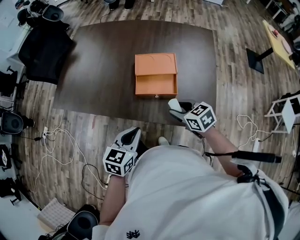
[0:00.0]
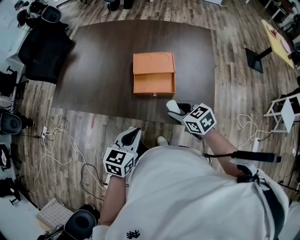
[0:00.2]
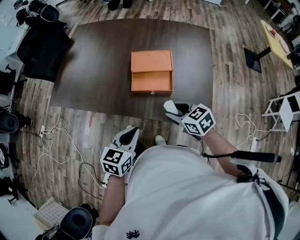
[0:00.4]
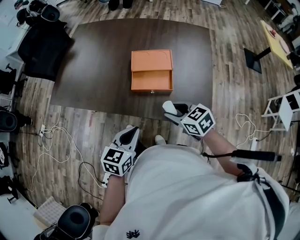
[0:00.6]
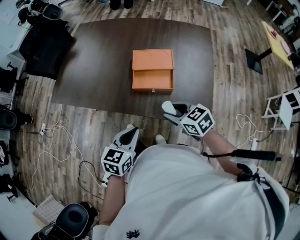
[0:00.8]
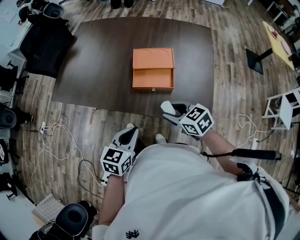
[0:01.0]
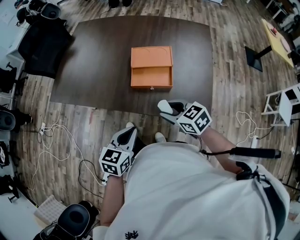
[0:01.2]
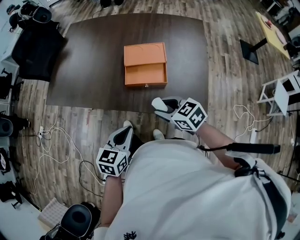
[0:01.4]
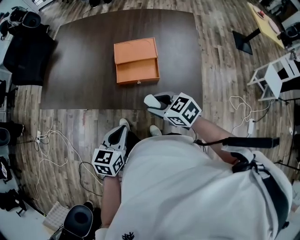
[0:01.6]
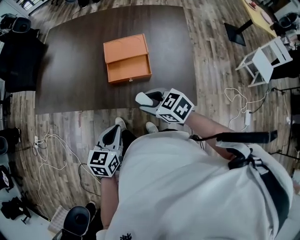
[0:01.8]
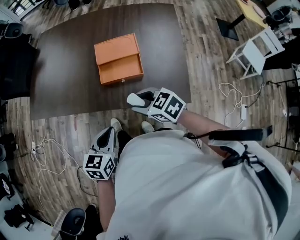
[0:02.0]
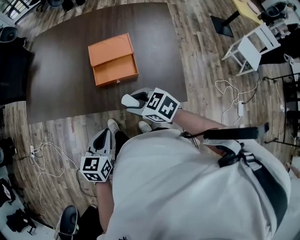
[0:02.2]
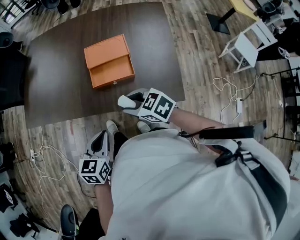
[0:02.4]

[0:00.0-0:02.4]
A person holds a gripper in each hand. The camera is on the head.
0:00.0 to 0:01.2: The right gripper shifts by roughly 5 cm.
0:01.2 to 0:02.4: There are only small adjustments of the grippers.

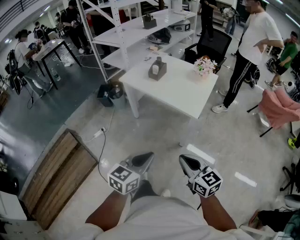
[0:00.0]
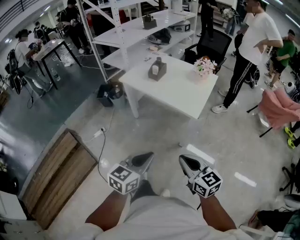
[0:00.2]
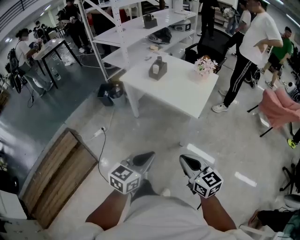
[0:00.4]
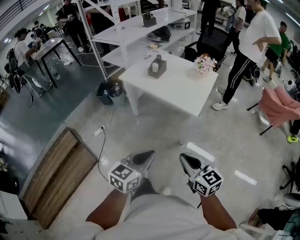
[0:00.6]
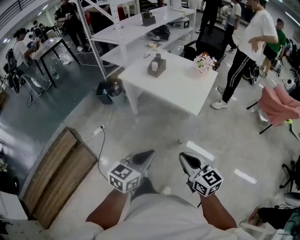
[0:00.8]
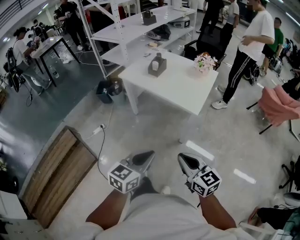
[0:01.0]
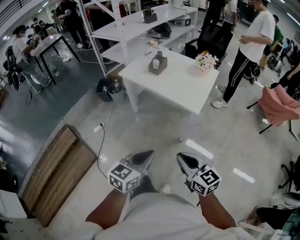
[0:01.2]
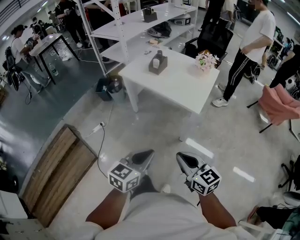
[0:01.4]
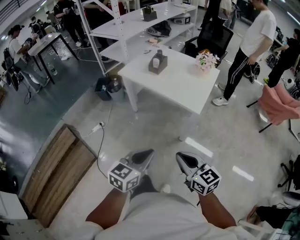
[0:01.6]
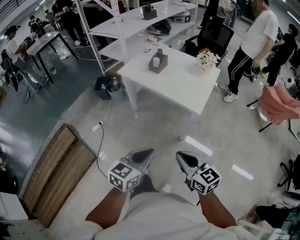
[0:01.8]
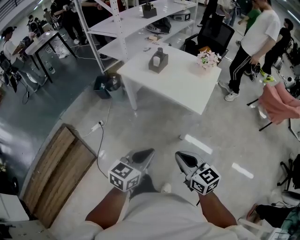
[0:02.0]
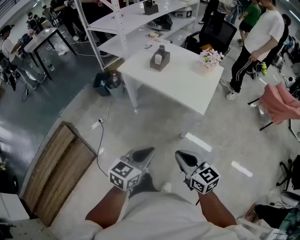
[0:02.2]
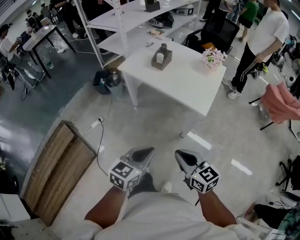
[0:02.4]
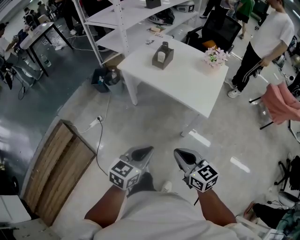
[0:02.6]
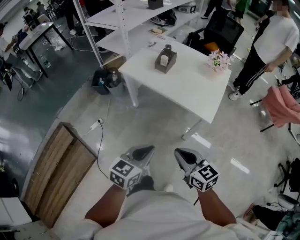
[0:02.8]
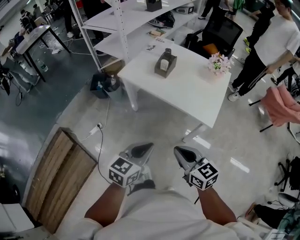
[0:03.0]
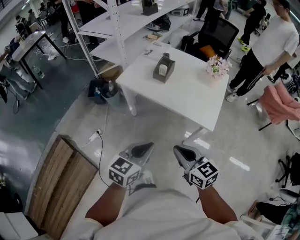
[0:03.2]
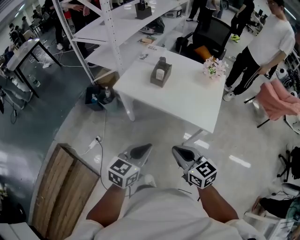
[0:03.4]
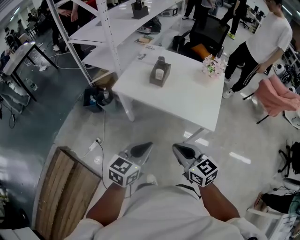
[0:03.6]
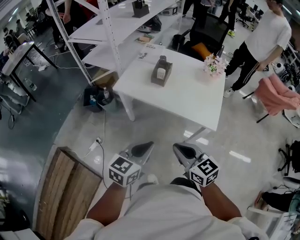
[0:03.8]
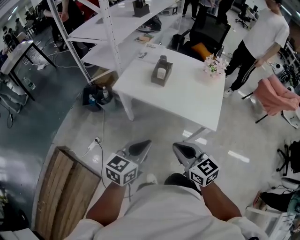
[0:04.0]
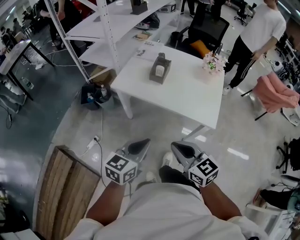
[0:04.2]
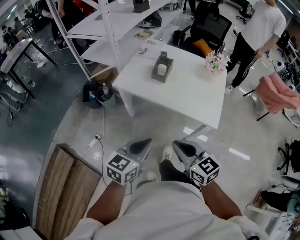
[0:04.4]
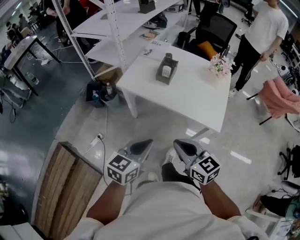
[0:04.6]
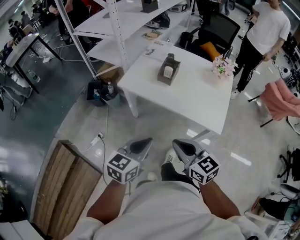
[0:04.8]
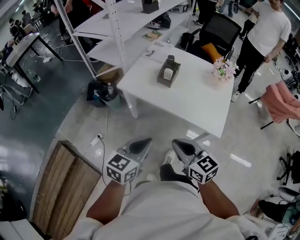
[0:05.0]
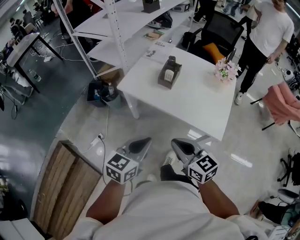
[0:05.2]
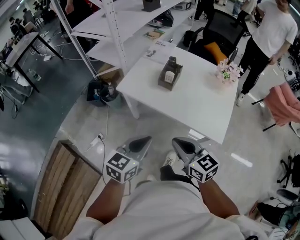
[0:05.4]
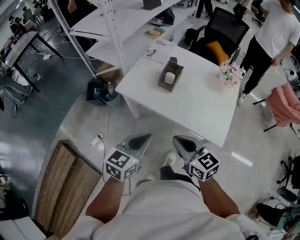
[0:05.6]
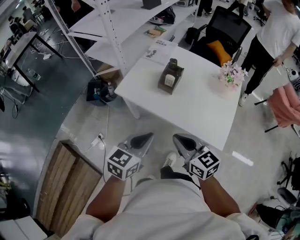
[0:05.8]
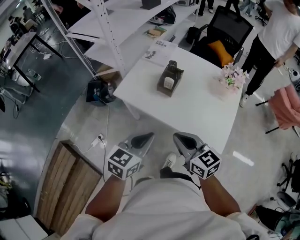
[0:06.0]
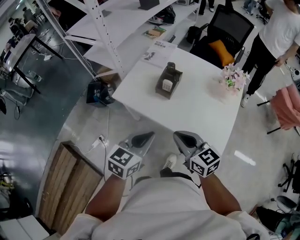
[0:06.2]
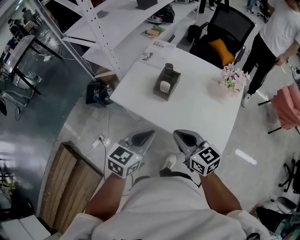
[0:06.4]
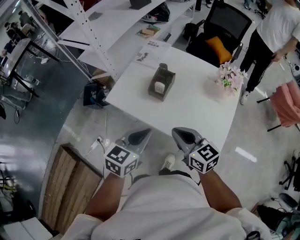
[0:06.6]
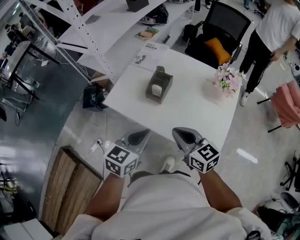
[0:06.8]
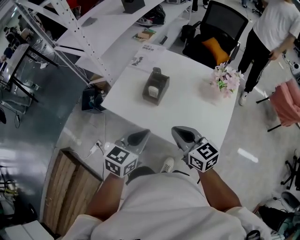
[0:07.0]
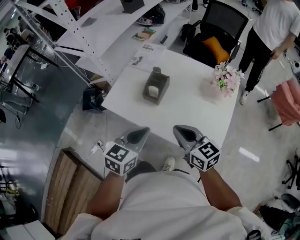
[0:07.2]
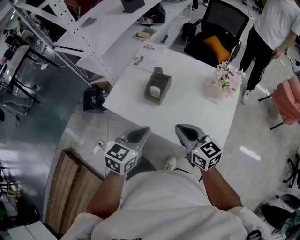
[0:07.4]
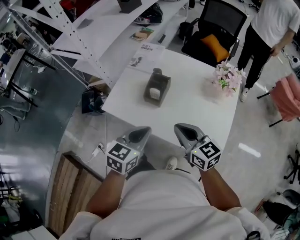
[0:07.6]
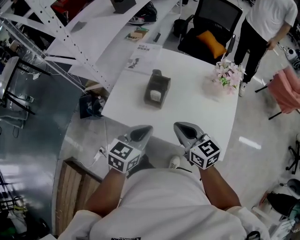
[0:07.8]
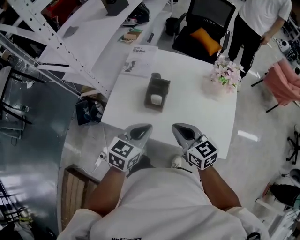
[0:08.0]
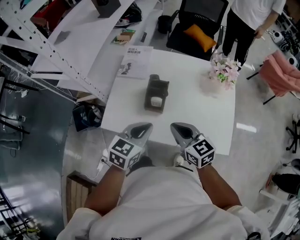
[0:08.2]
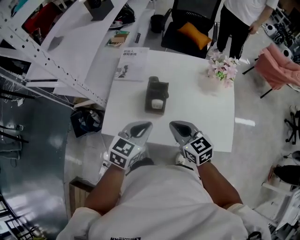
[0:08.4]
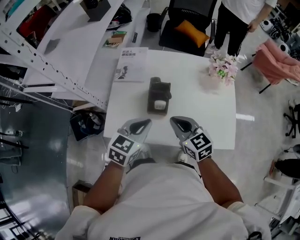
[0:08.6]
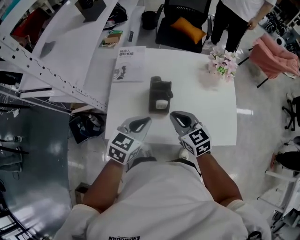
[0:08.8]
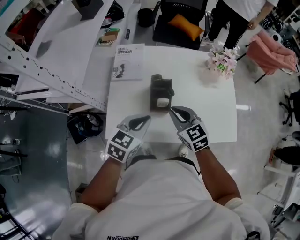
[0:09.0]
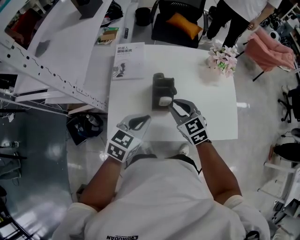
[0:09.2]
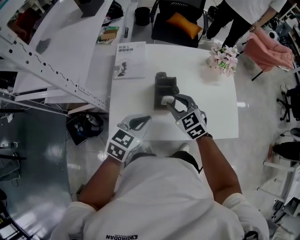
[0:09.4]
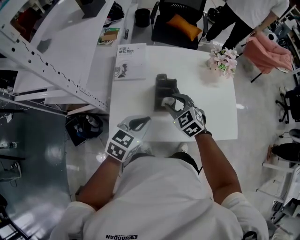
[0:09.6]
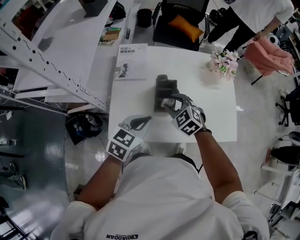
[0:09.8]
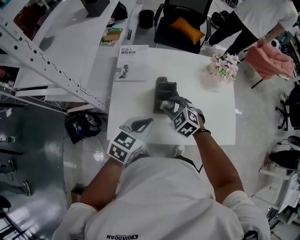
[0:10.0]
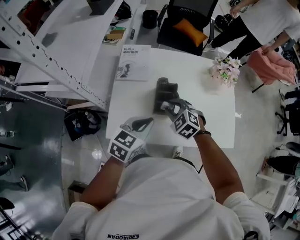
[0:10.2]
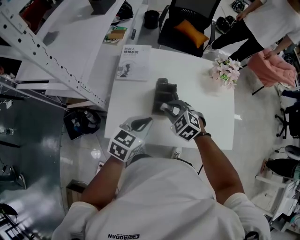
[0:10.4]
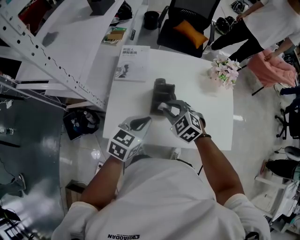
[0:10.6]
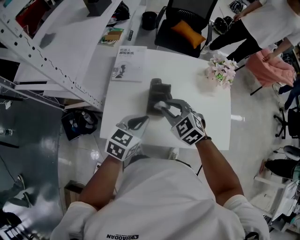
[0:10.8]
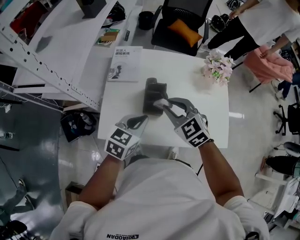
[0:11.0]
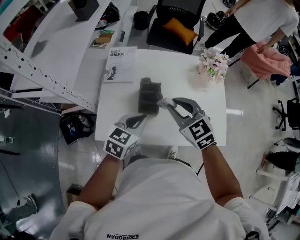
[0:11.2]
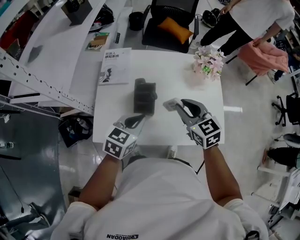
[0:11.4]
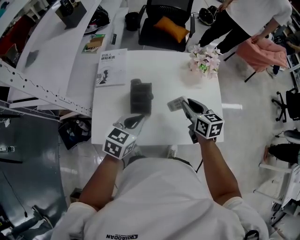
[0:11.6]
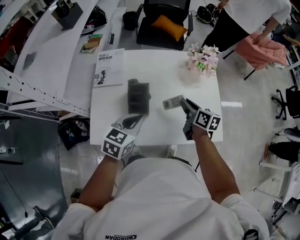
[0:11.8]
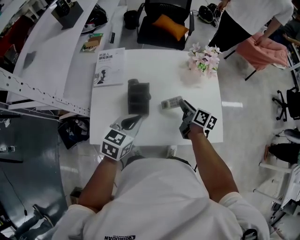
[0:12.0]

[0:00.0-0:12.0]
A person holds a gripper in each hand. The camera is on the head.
0:00.0 to 0:01.6: The grippers make only small movements.
0:01.6 to 0:03.0: Both grippers move forward and to the left, some 20 cm.
0:03.0 to 0:04.4: Both grippers move forward and to the left, approximately 10 cm.
0:04.4 to 0:06.0: The two grippers go roughly 20 cm forward.
0:06.0 to 0:07.6: The two grippers go some 15 cm forward and to the right.
0:07.6 to 0:09.0: The left gripper ends up roughly 20 cm from where it was, and swivels some 30 degrees, while the right gripper changes place by roughly 20 cm, and rotates approximately 30 degrees.
0:09.0 to 0:10.4: The right gripper ends up approximately 5 cm from where it was, and rotates approximately 40 degrees.
0:10.4 to 0:12.0: The right gripper heads to the right, covering about 20 cm, and rolls clockwise, seen from behind, by some 90 degrees, while the left gripper travels to the right by some 10 cm.

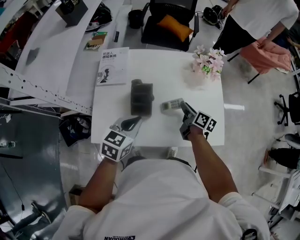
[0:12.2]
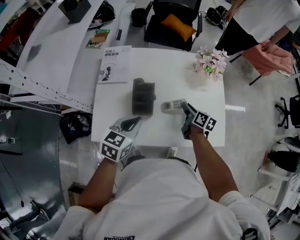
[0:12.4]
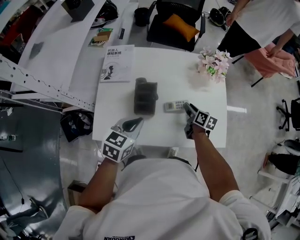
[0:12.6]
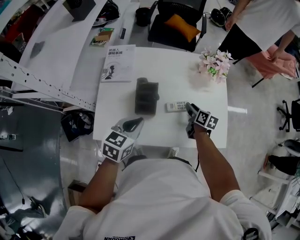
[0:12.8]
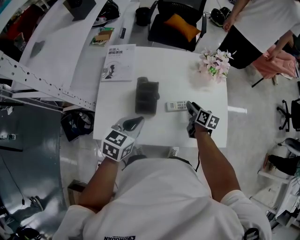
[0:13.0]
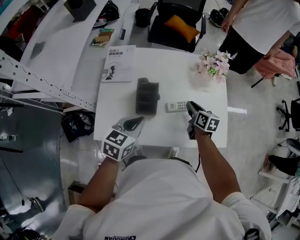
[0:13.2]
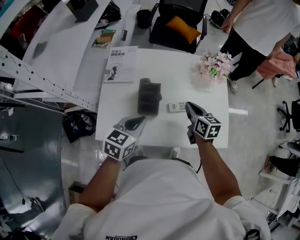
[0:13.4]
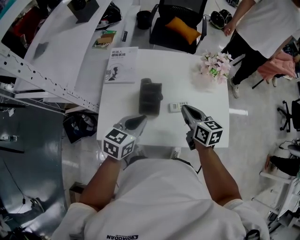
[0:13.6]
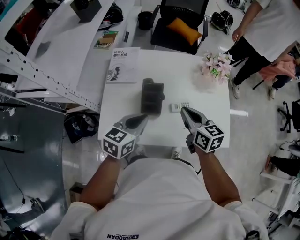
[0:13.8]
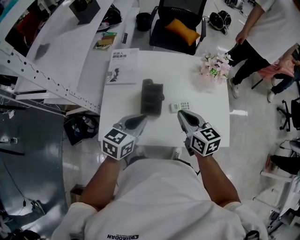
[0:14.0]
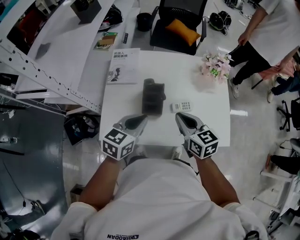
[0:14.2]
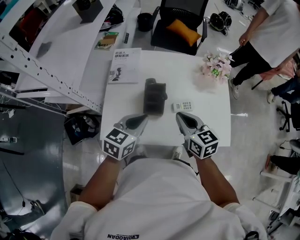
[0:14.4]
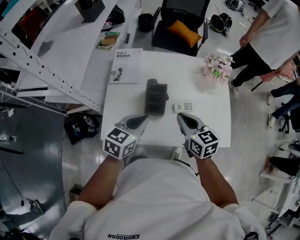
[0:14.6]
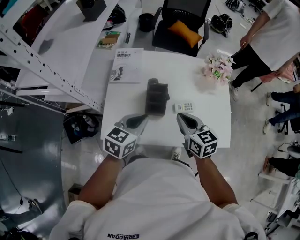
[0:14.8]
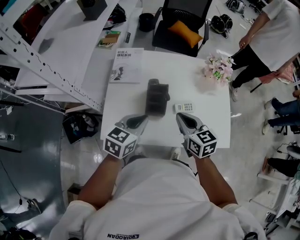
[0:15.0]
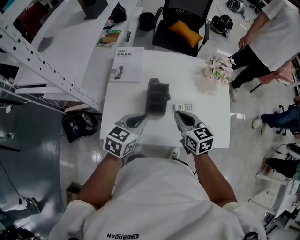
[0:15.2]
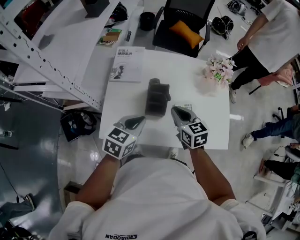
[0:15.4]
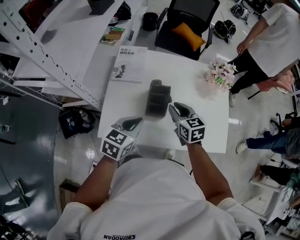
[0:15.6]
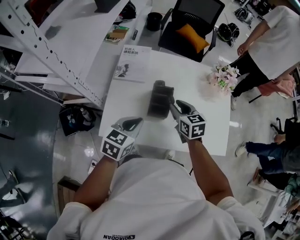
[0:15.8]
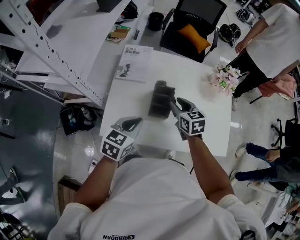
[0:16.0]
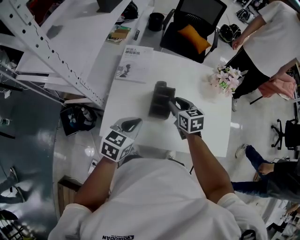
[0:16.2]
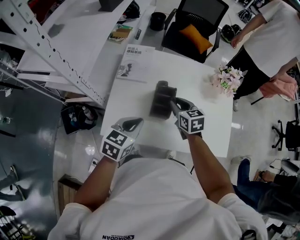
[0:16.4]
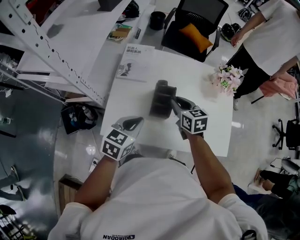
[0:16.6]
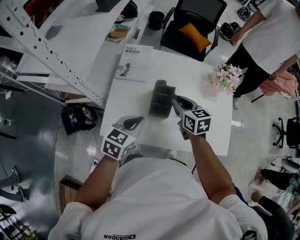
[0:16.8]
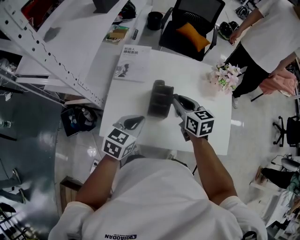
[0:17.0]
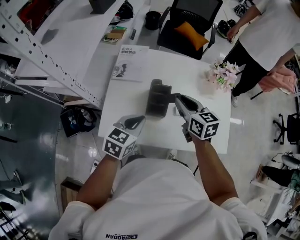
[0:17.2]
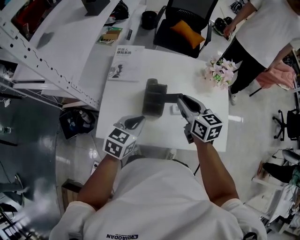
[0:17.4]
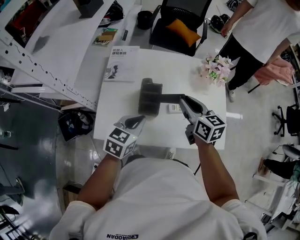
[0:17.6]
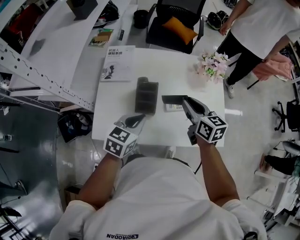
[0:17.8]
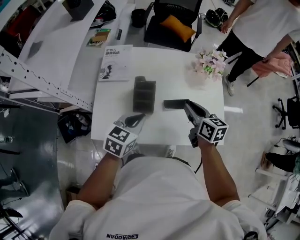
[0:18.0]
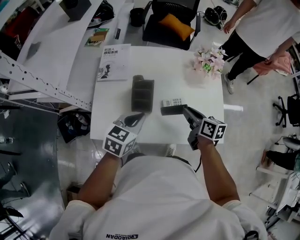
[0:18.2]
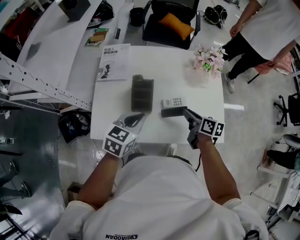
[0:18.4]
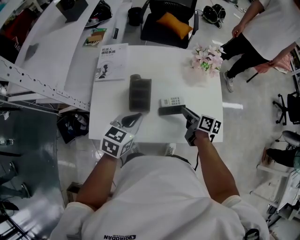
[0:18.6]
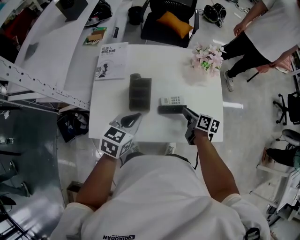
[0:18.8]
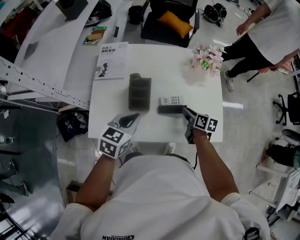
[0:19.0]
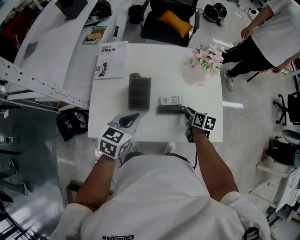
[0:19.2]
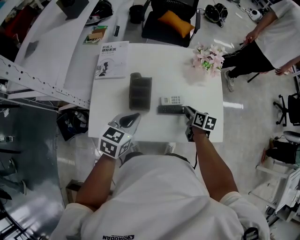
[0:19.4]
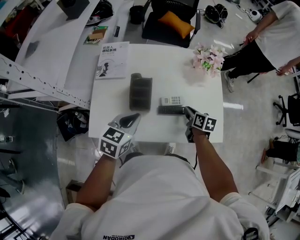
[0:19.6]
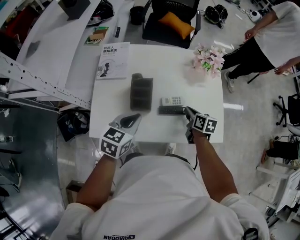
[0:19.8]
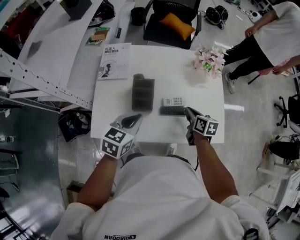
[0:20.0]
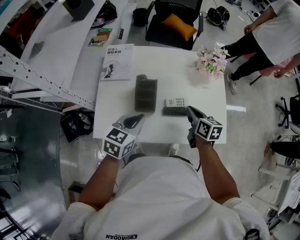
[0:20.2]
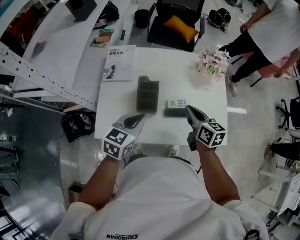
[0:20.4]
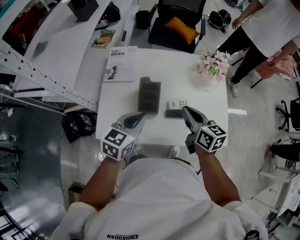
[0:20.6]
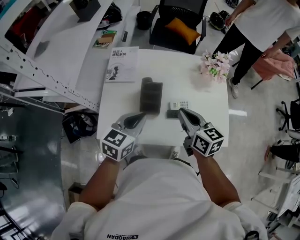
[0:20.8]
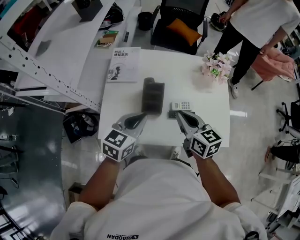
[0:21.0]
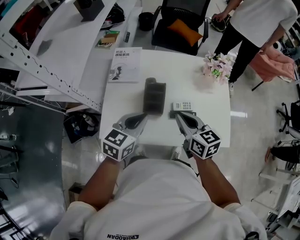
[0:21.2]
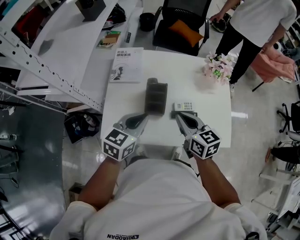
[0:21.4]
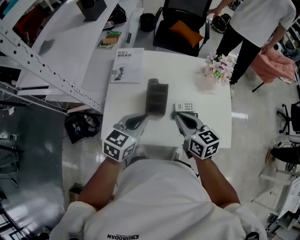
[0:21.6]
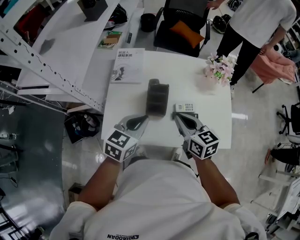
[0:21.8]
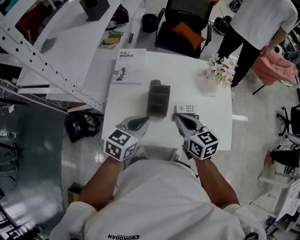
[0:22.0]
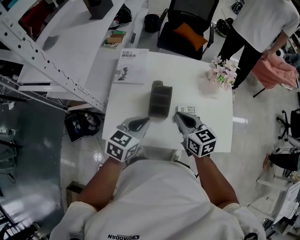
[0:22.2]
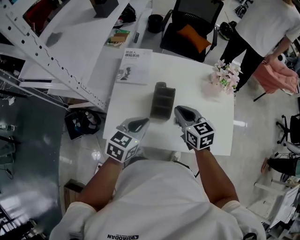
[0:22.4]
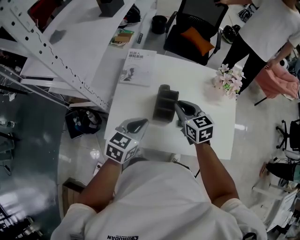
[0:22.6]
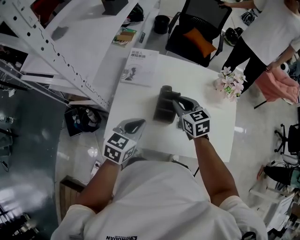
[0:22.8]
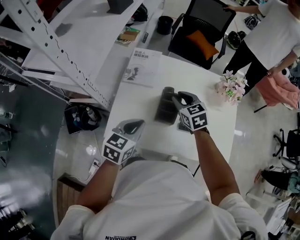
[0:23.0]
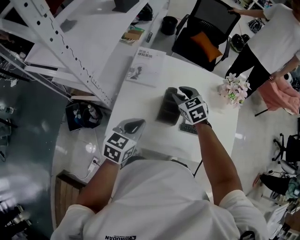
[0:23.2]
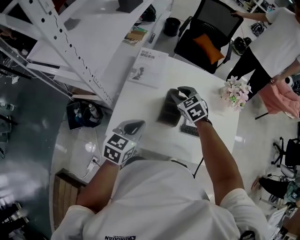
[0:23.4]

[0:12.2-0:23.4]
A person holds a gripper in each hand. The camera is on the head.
0:12.2 to 0:13.8: The right gripper is displaced upward, to the left and backward by approximately 15 cm, rotates roughly 40 degrees, and closes up.
0:13.8 to 0:15.4: The right gripper is displaced to the left by approximately 5 cm.
0:15.4 to 0:17.0: The right gripper is displaced forward by approximately 5 cm.
0:17.0 to 0:18.6: The left gripper travels to the right by approximately 10 cm. The right gripper goes some 20 cm to the right and downward, and rolls clockwise, seen from behind, by roughly 40 degrees.
0:18.6 to 0:20.2: The right gripper changes its angle by roughly 20 degrees.
0:20.2 to 0:21.8: The right gripper moves to the left and upward, roughly 15 cm, and changes its angle by about 20 degrees.
0:21.8 to 0:23.4: The left gripper goes some 10 cm to the left; the right gripper travels forward and to the left by roughly 20 cm, turns by some 40 degrees, and opens.
